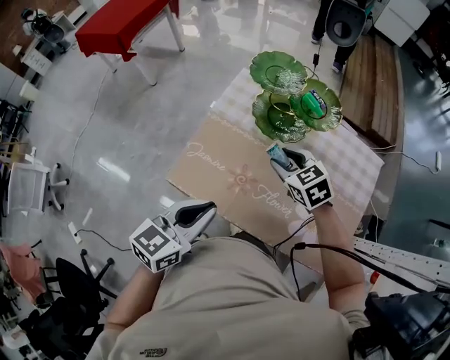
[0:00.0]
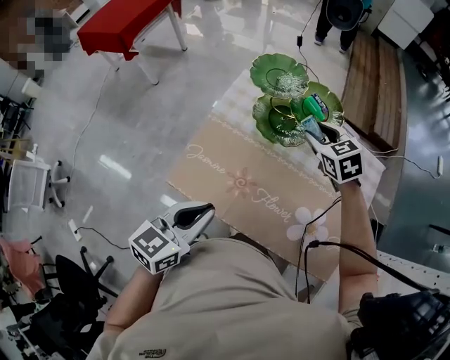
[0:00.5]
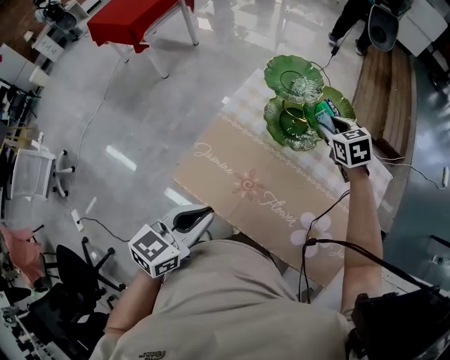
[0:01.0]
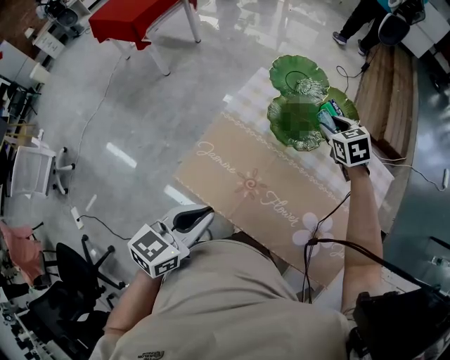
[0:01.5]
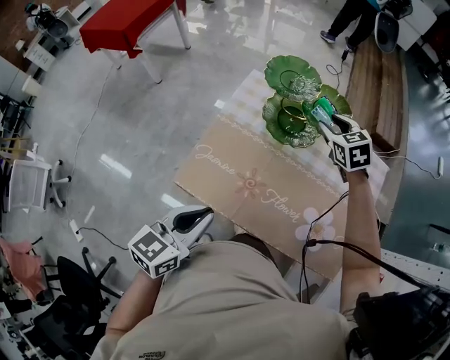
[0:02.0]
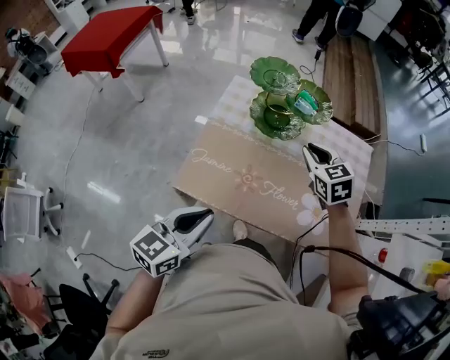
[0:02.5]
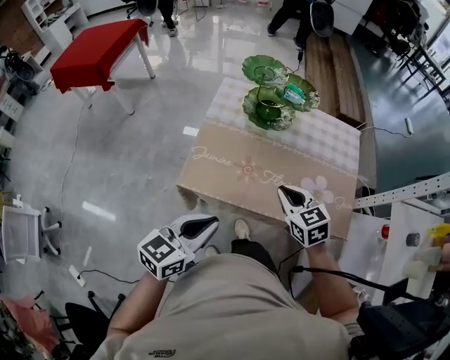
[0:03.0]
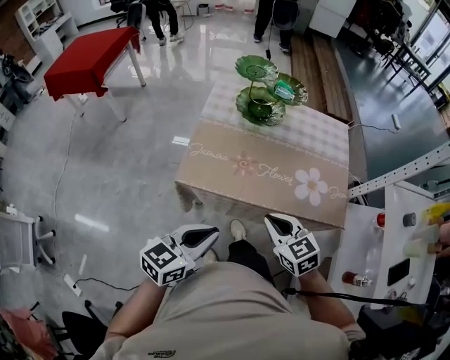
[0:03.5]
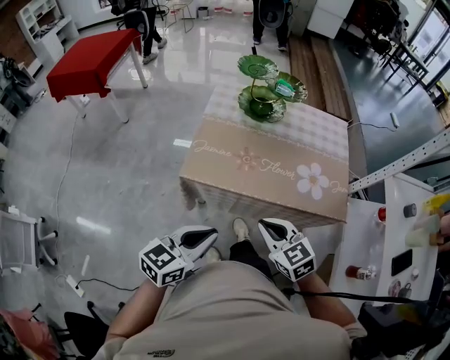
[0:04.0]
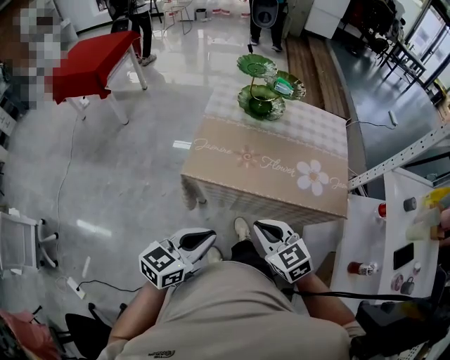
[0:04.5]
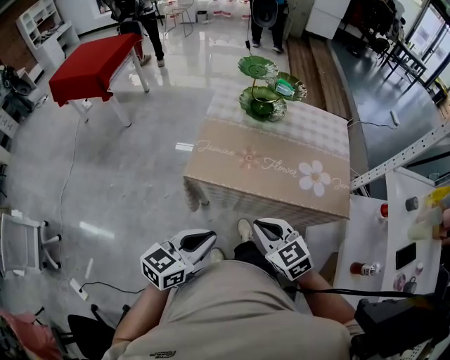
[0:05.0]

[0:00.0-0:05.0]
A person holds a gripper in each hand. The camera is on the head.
0:00.0 to 0:02.5: The right gripper shifts about 10 cm to the right and upward, goes forward and returns, approximately 15 cm each way, turns by some 20 degrees, and closes its fingers. Meanwhile the left gripper goes roughly 5 cm to the left.
0:02.5 to 0:05.0: The left gripper moves backward, approximately 20 cm; the right gripper heads backward, covering about 40 cm.

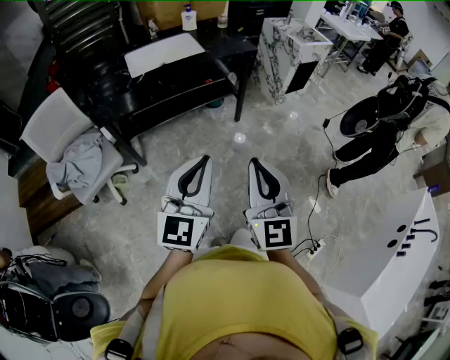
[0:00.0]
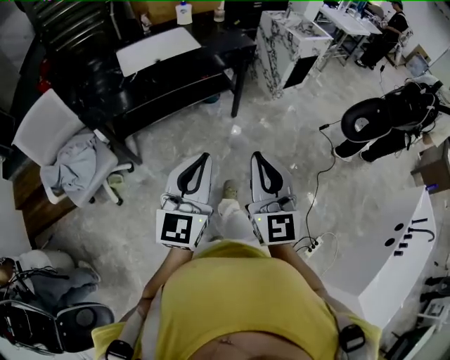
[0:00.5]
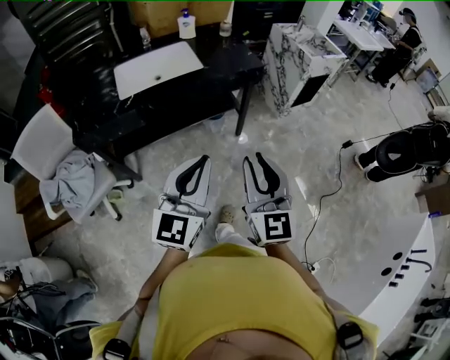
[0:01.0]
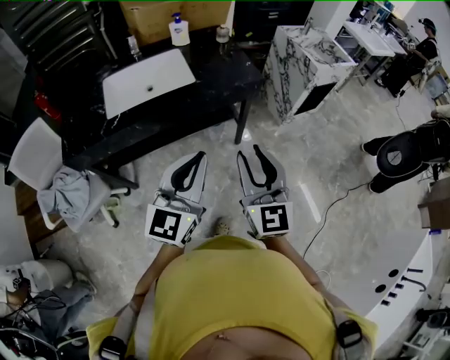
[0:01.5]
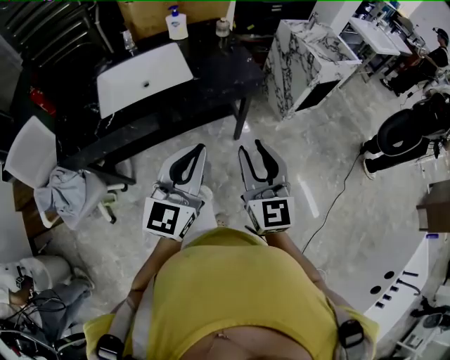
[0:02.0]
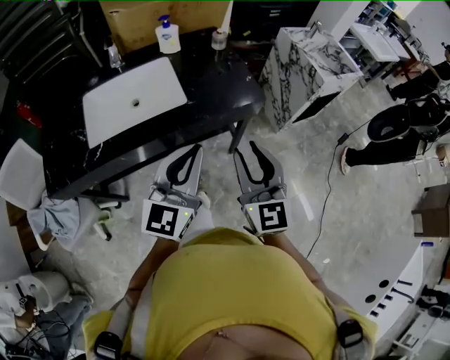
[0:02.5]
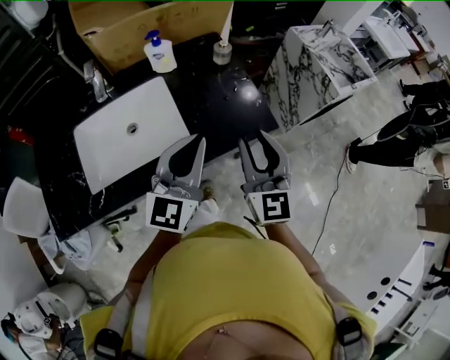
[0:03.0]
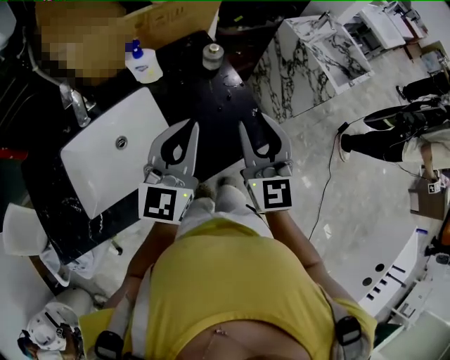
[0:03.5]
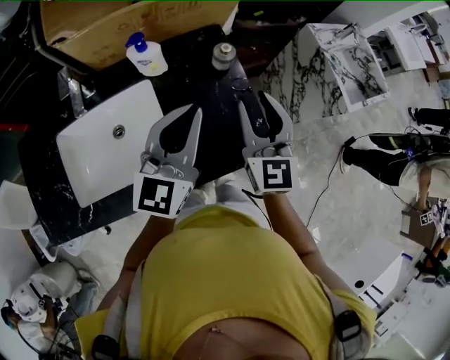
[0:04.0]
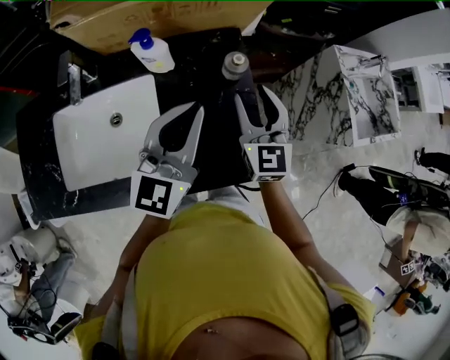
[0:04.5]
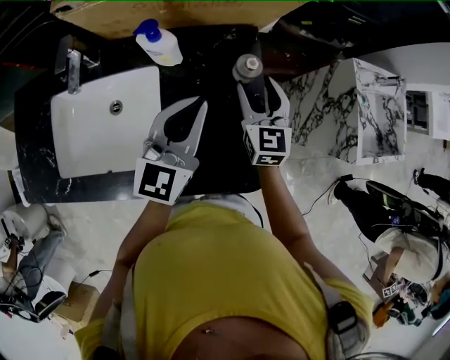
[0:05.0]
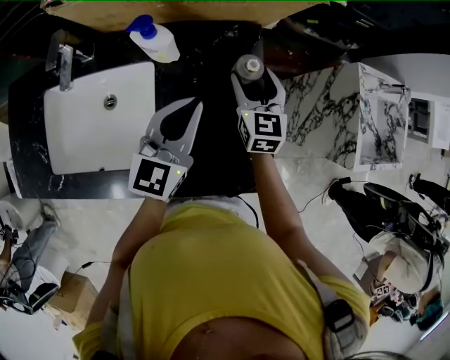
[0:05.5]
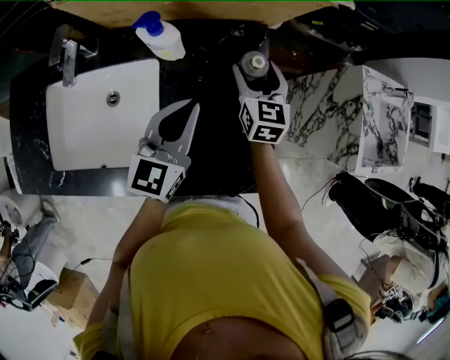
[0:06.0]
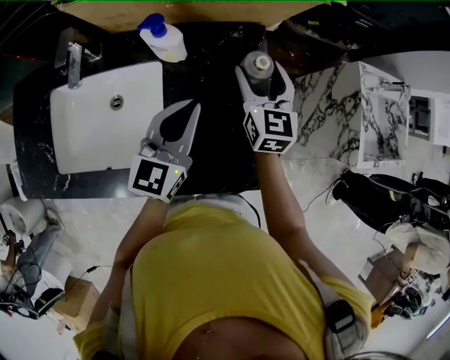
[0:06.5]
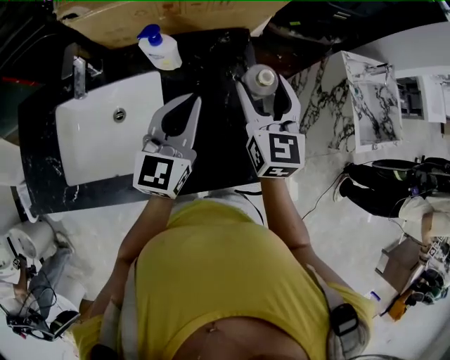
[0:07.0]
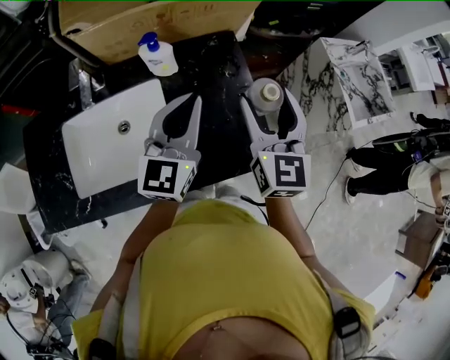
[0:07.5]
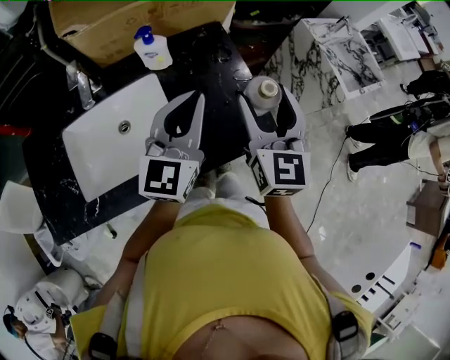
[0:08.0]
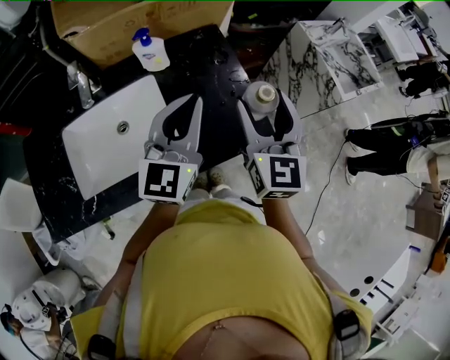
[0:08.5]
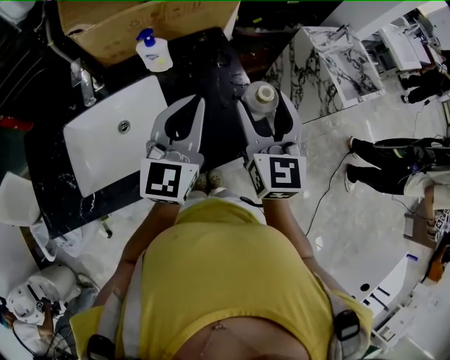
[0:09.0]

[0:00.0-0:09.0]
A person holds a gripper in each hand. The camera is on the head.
0:00.0 to 0:02.0: The two grippers travel together, forward, some 40 cm. The right gripper opens its fingers.
0:02.0 to 0:04.5: The pair of grippers is taken forward, approximately 60 cm.
0:04.5 to 0:07.0: The right gripper travels downward and back again, about 10 cm each way, and opens. Meanwhile the left gripper goes about 5 cm downward.
0:07.0 to 0:09.0: The grippers both shift backward and upward by roughly 15 cm.

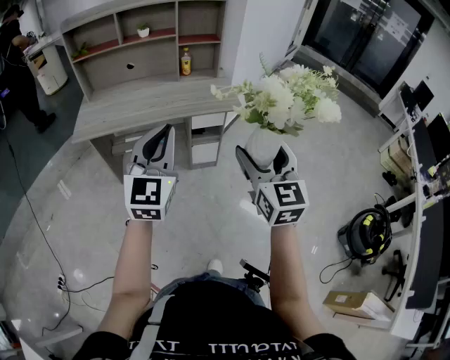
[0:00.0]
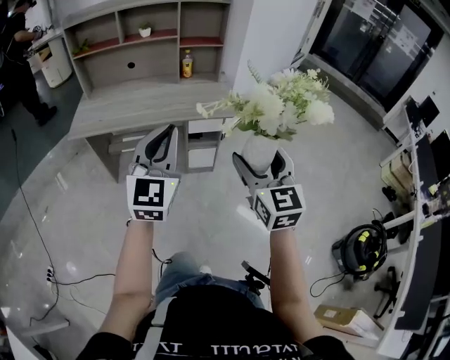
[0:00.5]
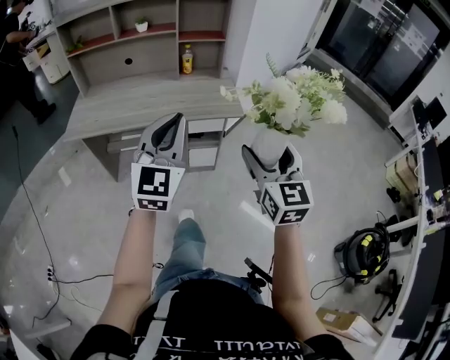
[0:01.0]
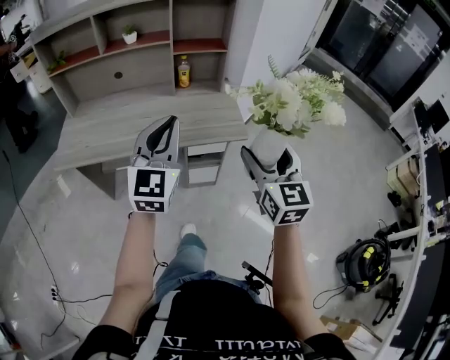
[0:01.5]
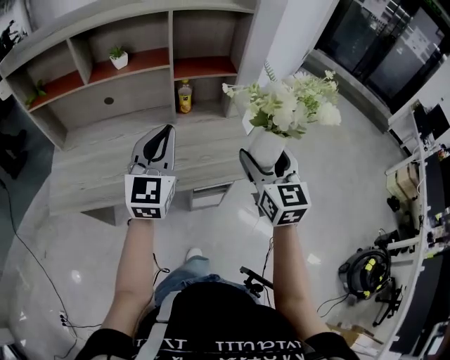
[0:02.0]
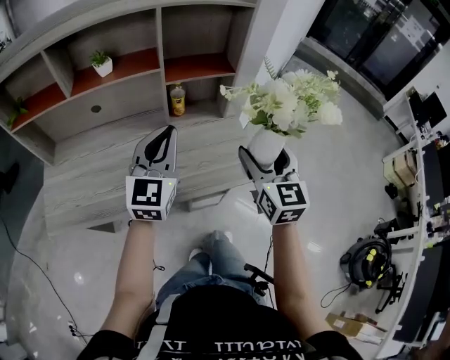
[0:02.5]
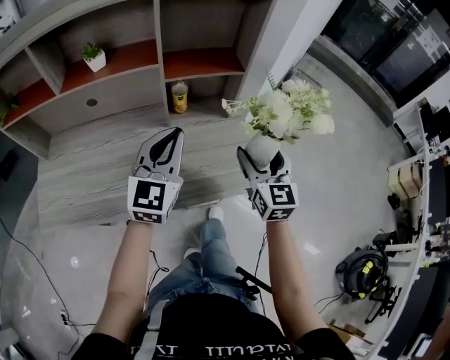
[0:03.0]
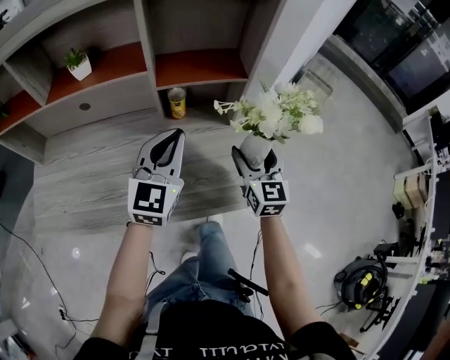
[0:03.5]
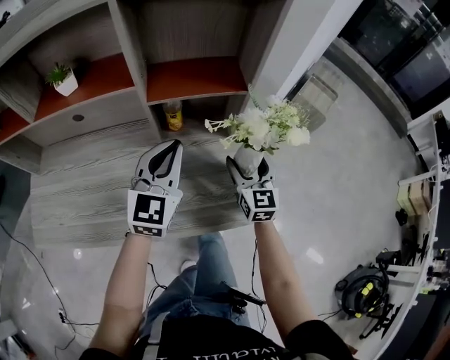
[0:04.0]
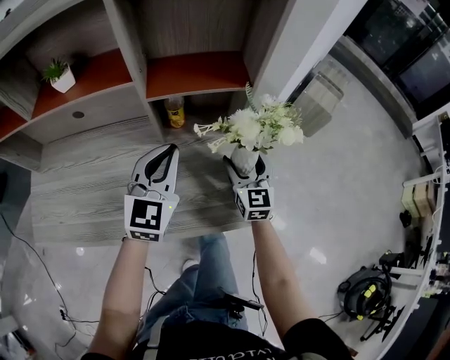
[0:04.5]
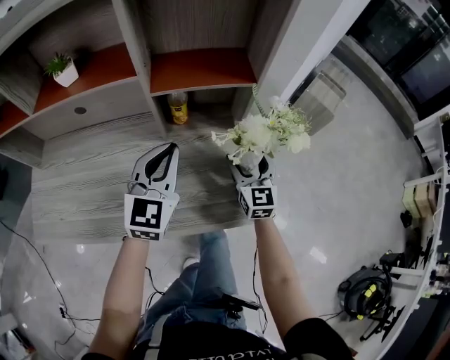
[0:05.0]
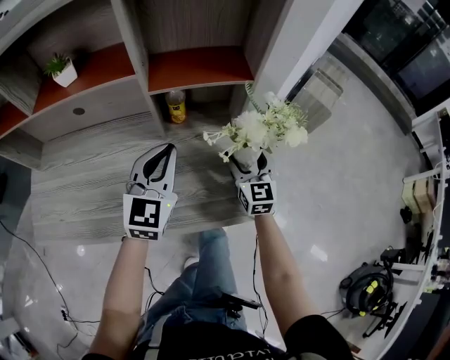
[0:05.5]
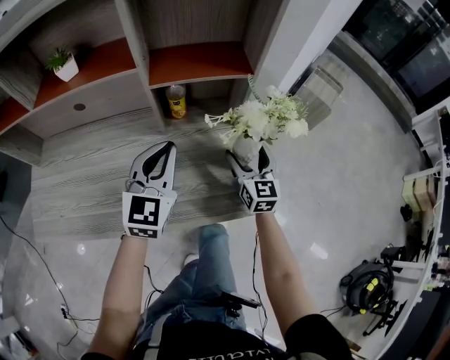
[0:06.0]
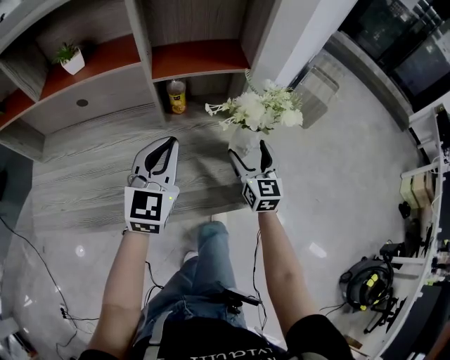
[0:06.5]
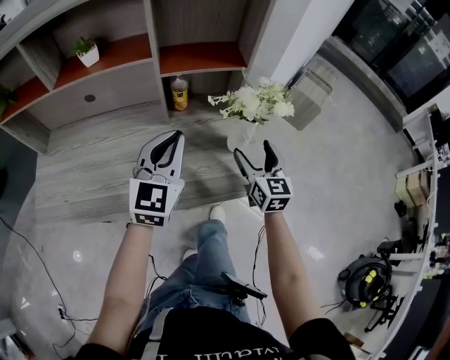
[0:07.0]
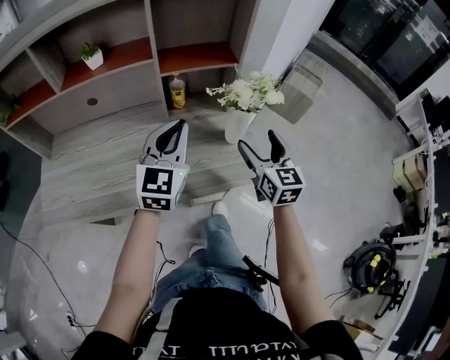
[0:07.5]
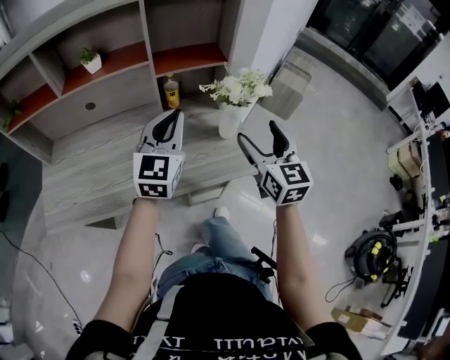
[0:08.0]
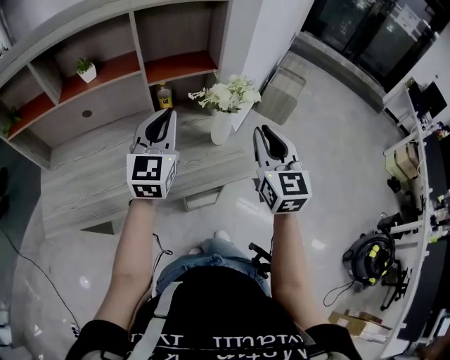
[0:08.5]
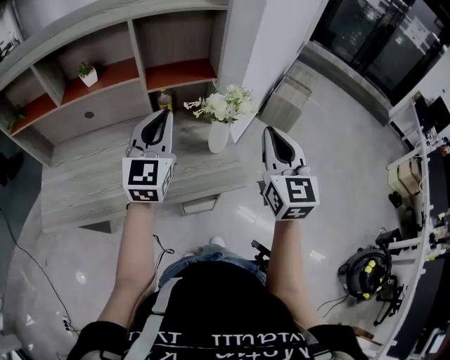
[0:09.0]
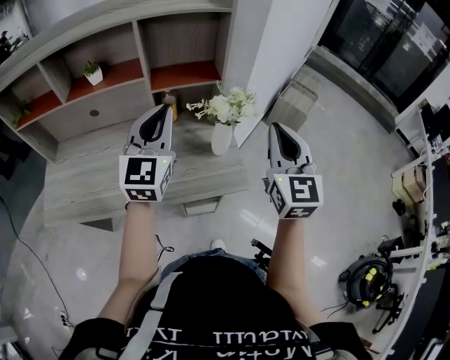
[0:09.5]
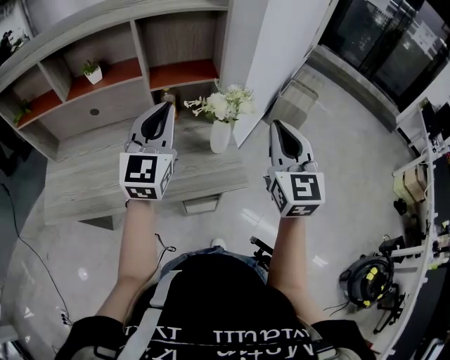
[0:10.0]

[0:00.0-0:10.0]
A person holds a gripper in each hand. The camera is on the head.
0:00.0 to 0:02.0: Both grippers are carried forward, approximately 50 cm.
0:02.0 to 0:04.0: Both grippers travel together forward and downward, some 30 cm.
0:04.0 to 0:06.0: The grippers make only small movements.
0:06.0 to 0:08.0: The left gripper moves upward and backward, roughly 15 cm. Meanwhile the right gripper is displaced upward and backward by approximately 25 cm.
0:08.0 to 0:10.0: The right gripper moves upward and to the right, roughly 15 cm, and closes; the left gripper goes some 10 cm upward.

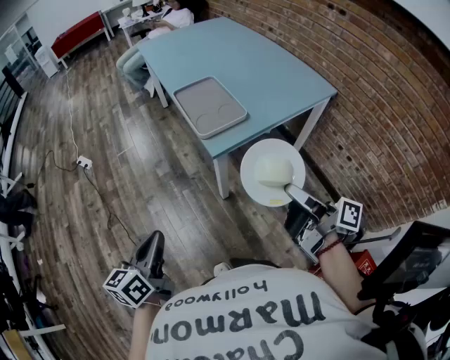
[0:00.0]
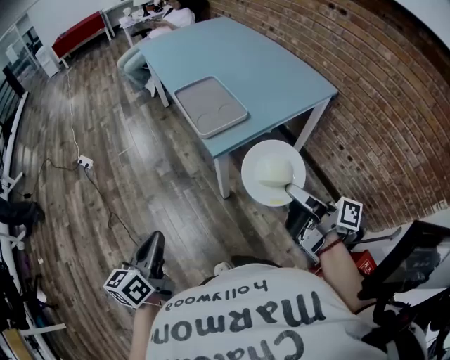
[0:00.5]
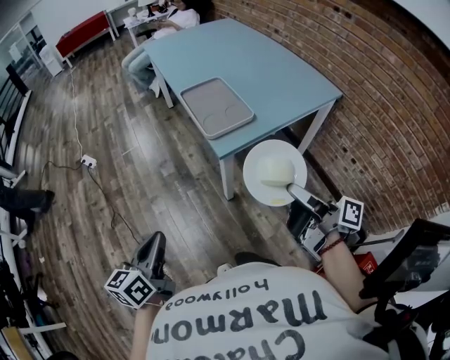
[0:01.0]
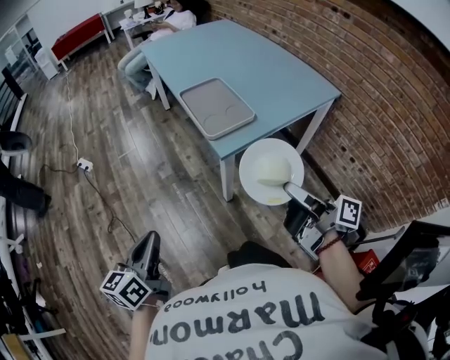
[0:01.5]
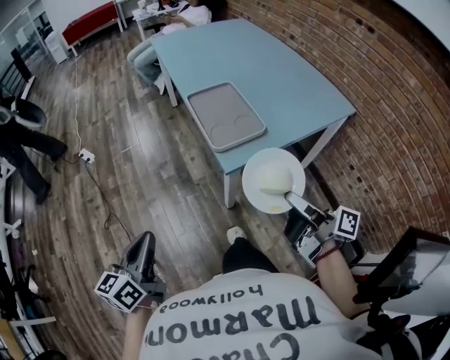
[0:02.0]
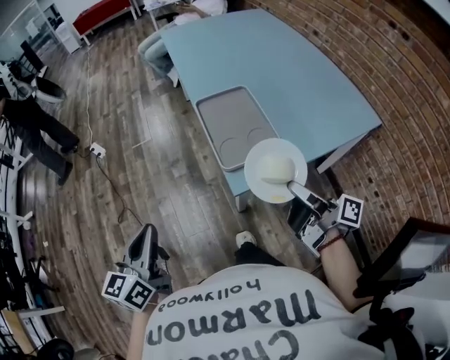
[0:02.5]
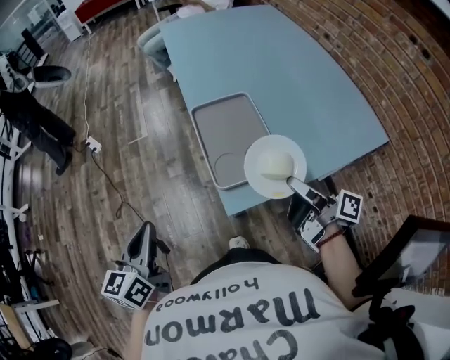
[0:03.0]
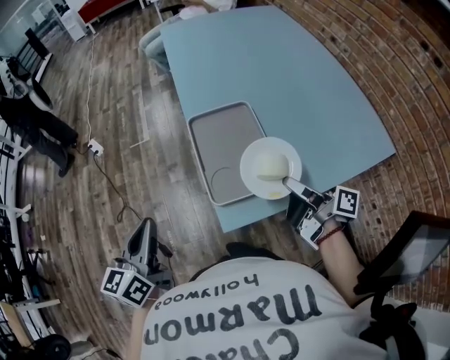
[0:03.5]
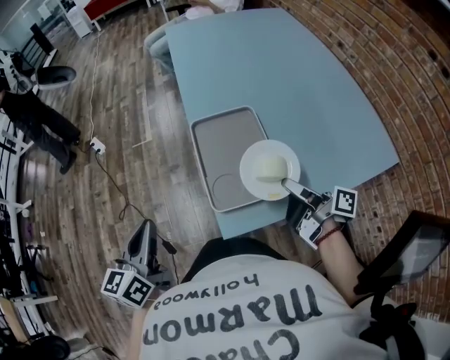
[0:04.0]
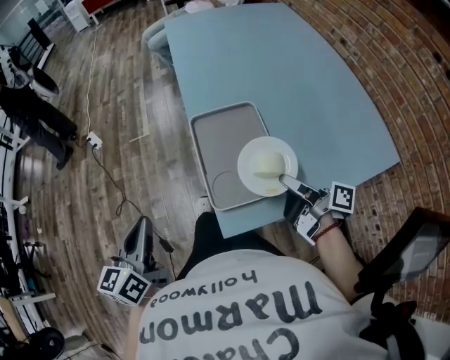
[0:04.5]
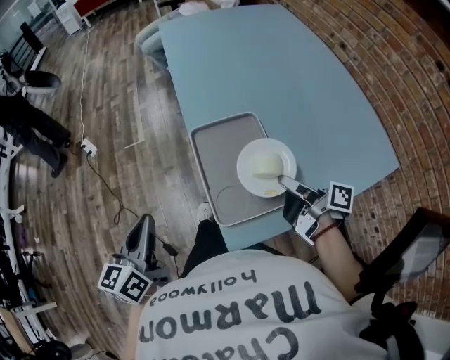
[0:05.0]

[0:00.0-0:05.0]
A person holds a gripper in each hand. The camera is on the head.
0:00.0 to 0:02.5: Both grippers move forward, approximately 20 cm.
0:02.5 to 0:05.0: The right gripper is displaced forward by roughly 20 cm. The left gripper shifts some 20 cm forward and to the right.
